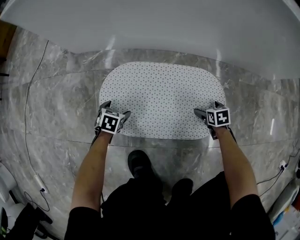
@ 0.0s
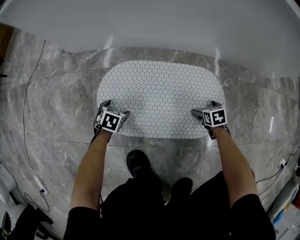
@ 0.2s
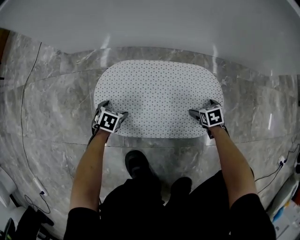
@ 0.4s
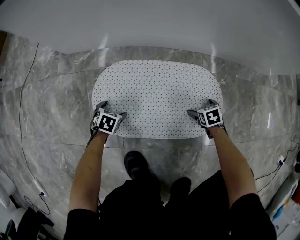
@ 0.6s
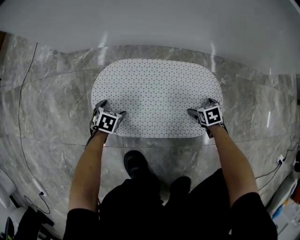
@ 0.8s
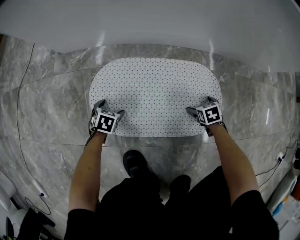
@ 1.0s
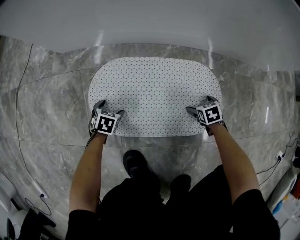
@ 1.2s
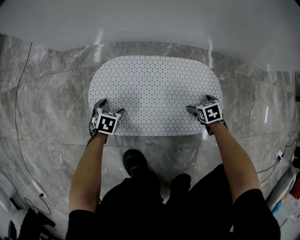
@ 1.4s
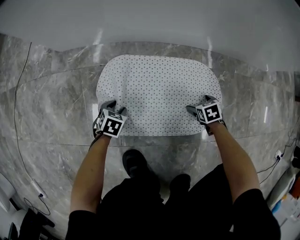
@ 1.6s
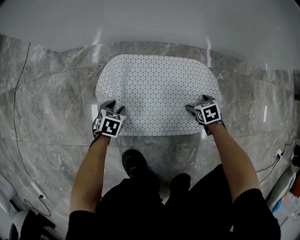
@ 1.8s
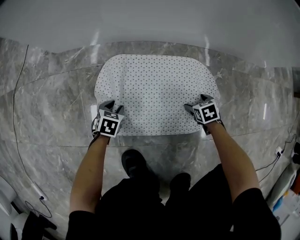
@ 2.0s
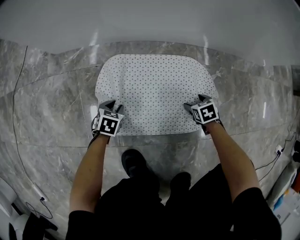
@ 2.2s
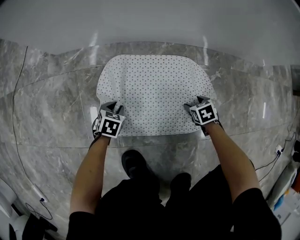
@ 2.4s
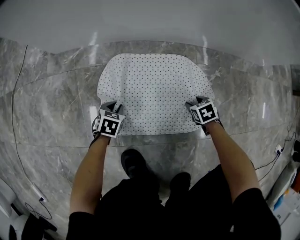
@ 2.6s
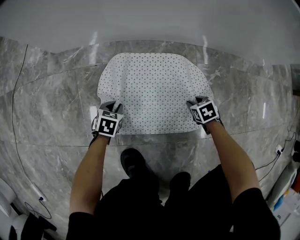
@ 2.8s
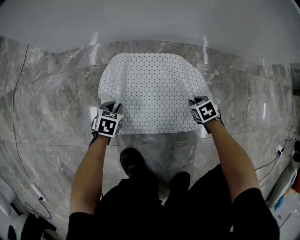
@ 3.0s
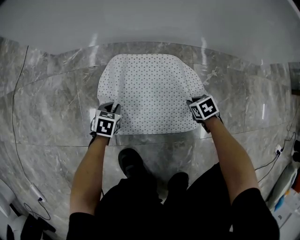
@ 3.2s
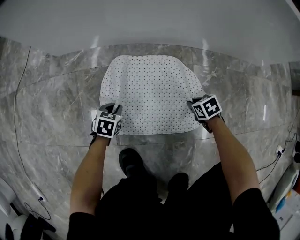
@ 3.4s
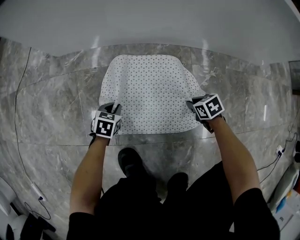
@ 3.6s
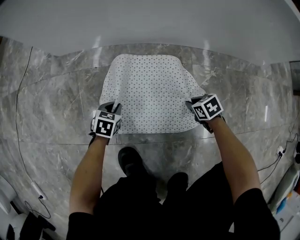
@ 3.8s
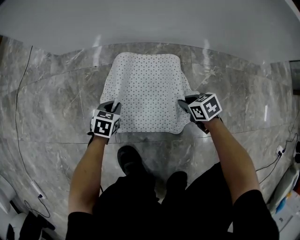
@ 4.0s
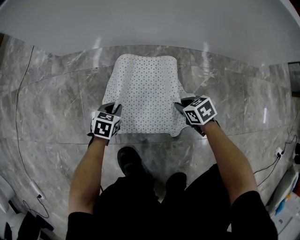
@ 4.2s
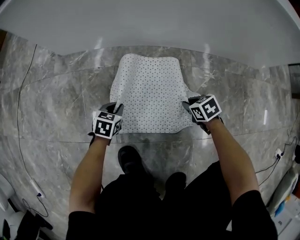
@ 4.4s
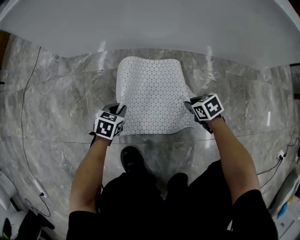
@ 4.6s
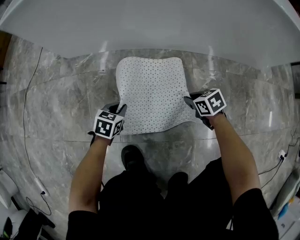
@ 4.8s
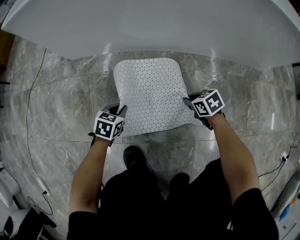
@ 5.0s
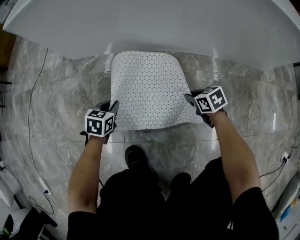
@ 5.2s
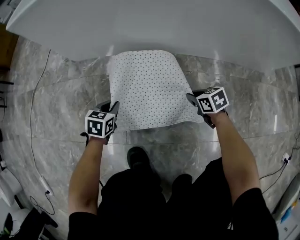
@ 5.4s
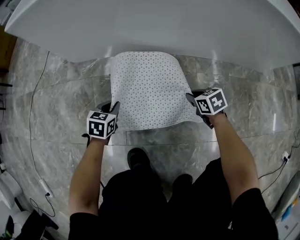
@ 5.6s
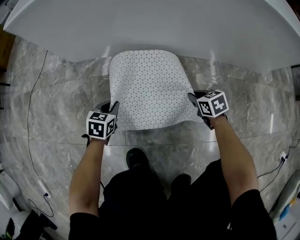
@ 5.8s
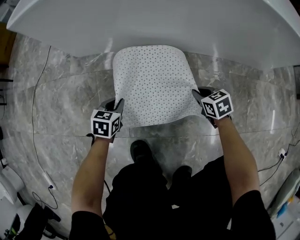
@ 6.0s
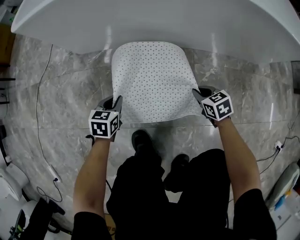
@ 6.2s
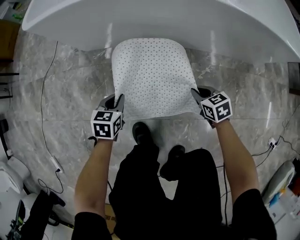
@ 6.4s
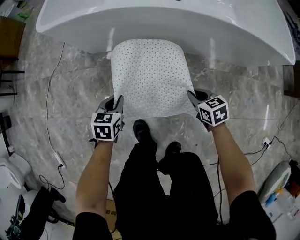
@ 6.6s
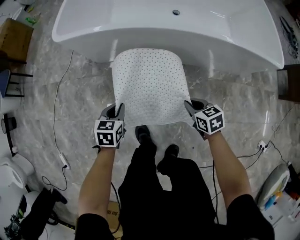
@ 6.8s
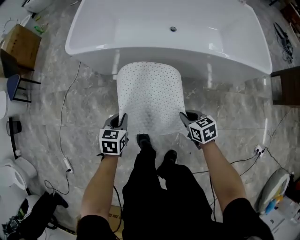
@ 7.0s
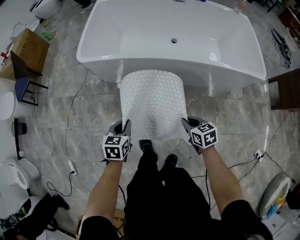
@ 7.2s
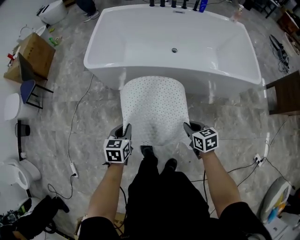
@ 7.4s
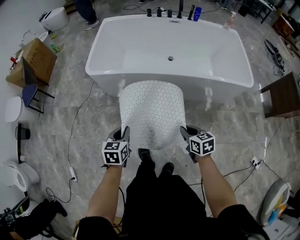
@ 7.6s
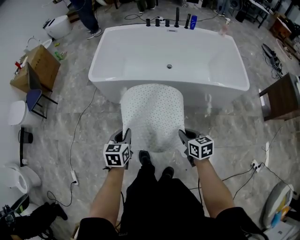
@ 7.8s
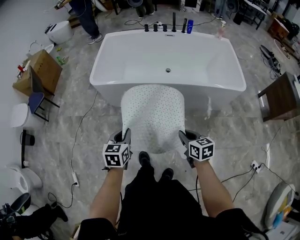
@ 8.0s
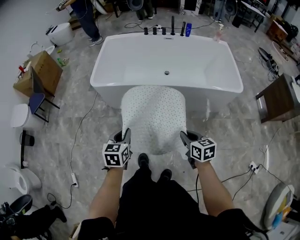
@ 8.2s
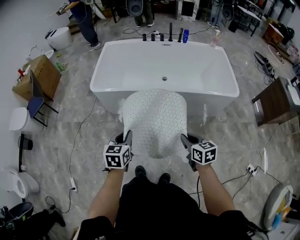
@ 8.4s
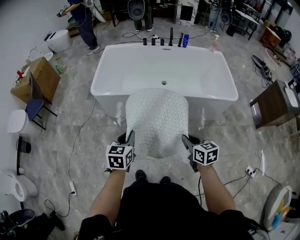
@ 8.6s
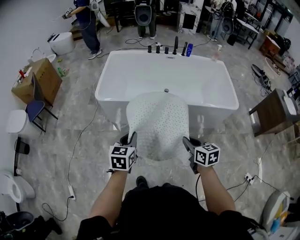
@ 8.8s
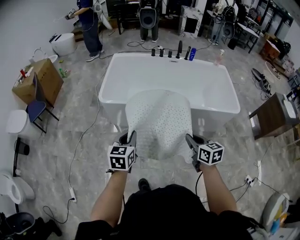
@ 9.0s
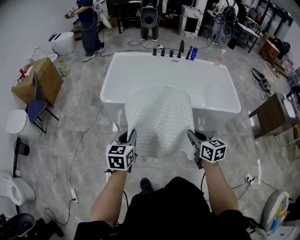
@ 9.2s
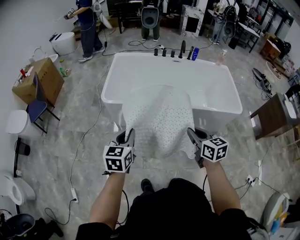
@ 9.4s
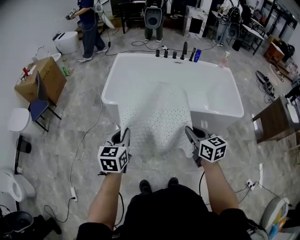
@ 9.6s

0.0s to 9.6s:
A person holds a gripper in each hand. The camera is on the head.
0.0s to 1.6s: The left gripper closes its fingers.
1.6s to 3.2s: The right gripper closes up.
3.2s to 4.8s: The two grippers go some 10 cm upward.
4.8s to 6.4s: Both grippers travel together upward, some 20 cm.
6.4s to 8.0s: Both grippers move upward, approximately 50 cm. The right gripper rotates about 30 degrees.
8.0s to 9.6s: The right gripper heads upward and forward, covering approximately 20 cm. The left gripper heads upward, to the left and forward, covering about 20 cm.

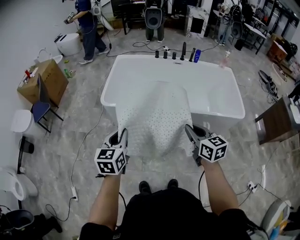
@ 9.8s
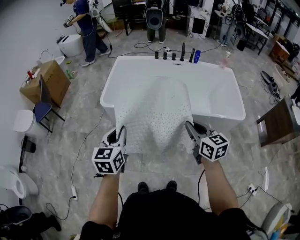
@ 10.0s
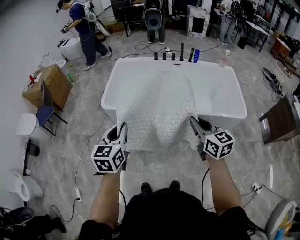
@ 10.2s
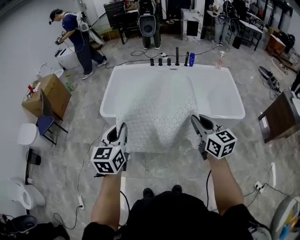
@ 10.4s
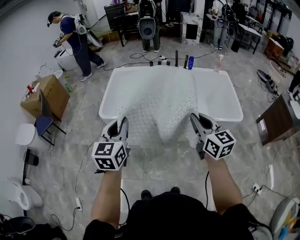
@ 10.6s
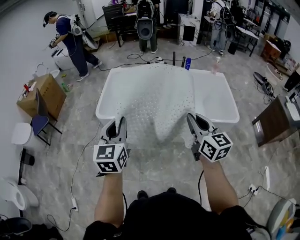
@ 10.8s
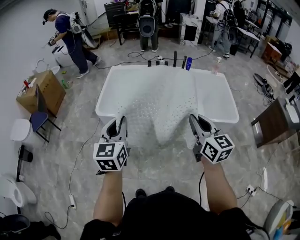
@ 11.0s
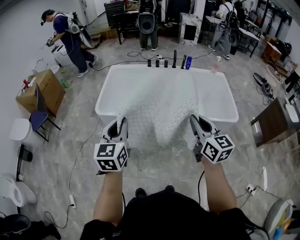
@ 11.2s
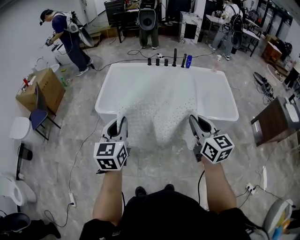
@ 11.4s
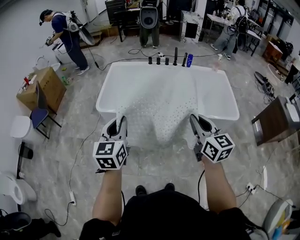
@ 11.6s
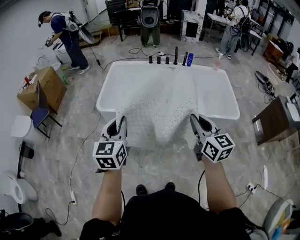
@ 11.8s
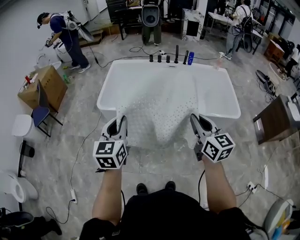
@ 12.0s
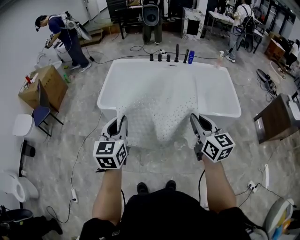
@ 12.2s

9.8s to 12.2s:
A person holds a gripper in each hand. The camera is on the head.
9.8s to 11.0s: The two grippers go roughly 10 cm upward and to the right.
11.0s to 12.2s: The grippers stay close to where they were, moving slightly.

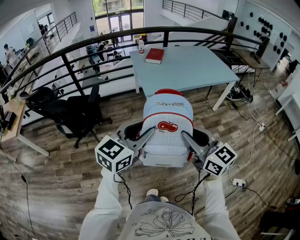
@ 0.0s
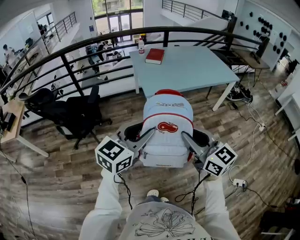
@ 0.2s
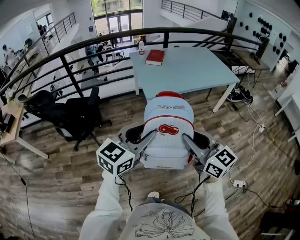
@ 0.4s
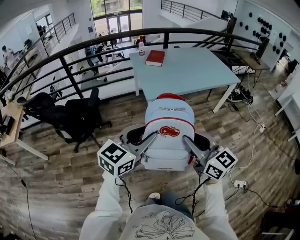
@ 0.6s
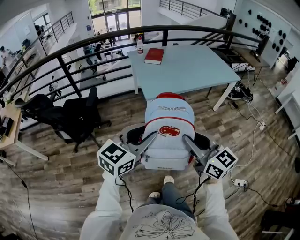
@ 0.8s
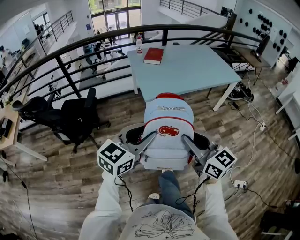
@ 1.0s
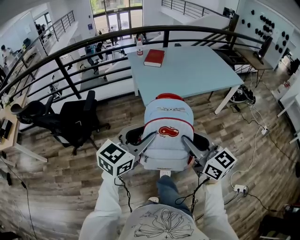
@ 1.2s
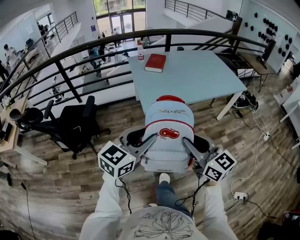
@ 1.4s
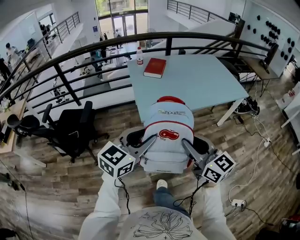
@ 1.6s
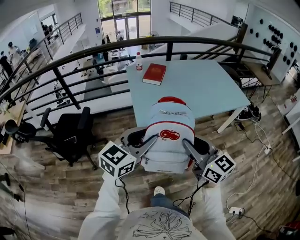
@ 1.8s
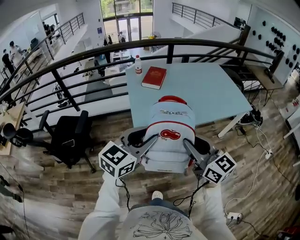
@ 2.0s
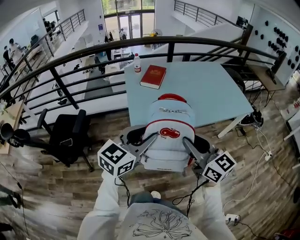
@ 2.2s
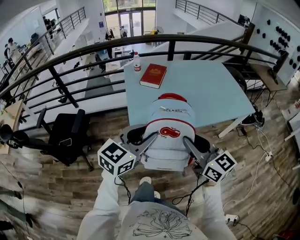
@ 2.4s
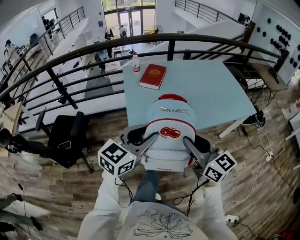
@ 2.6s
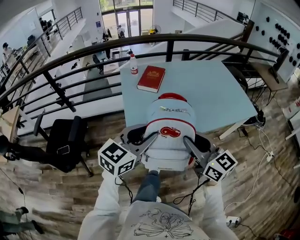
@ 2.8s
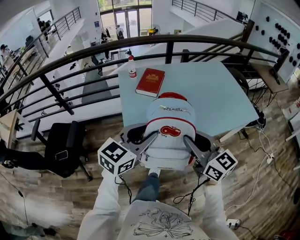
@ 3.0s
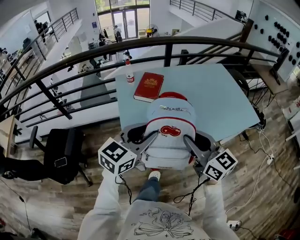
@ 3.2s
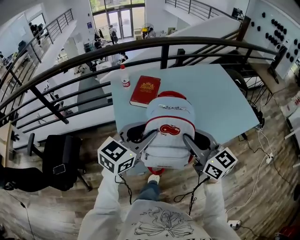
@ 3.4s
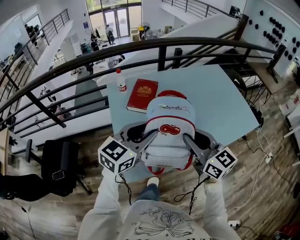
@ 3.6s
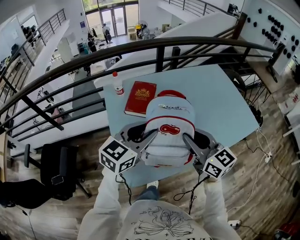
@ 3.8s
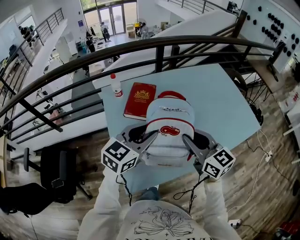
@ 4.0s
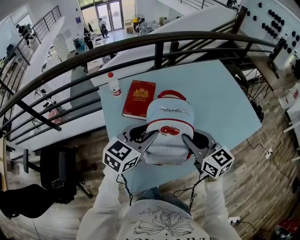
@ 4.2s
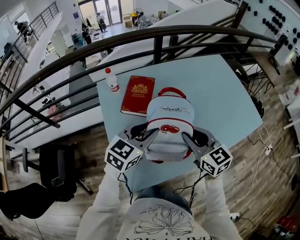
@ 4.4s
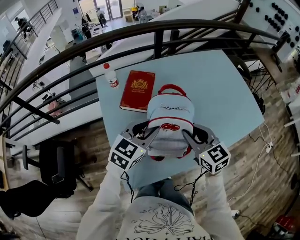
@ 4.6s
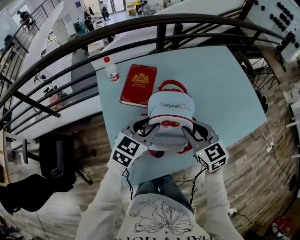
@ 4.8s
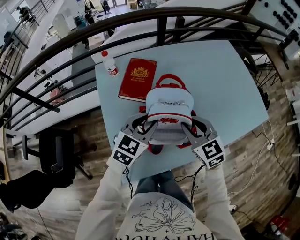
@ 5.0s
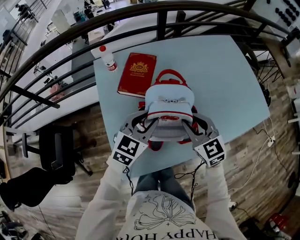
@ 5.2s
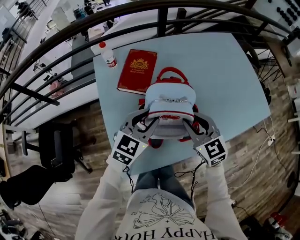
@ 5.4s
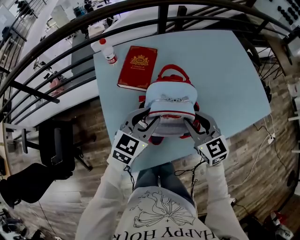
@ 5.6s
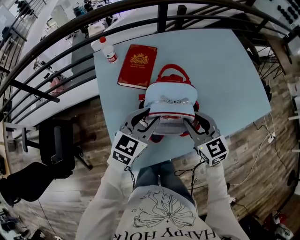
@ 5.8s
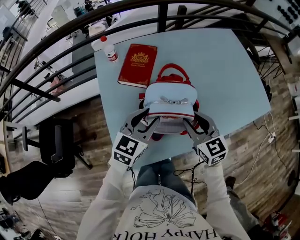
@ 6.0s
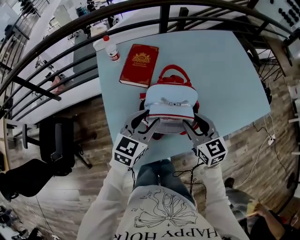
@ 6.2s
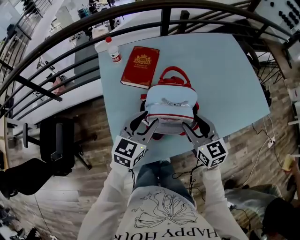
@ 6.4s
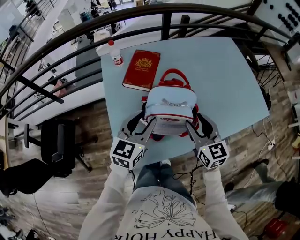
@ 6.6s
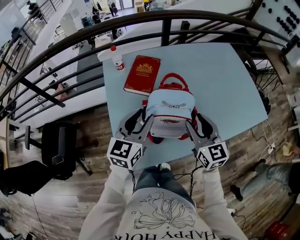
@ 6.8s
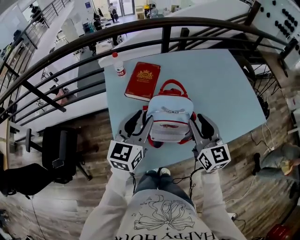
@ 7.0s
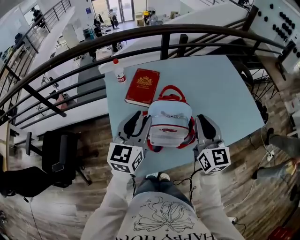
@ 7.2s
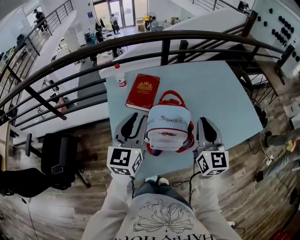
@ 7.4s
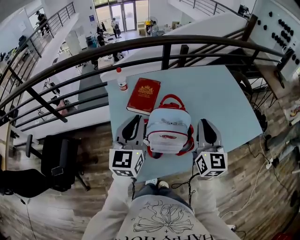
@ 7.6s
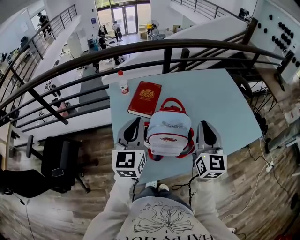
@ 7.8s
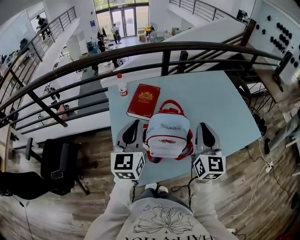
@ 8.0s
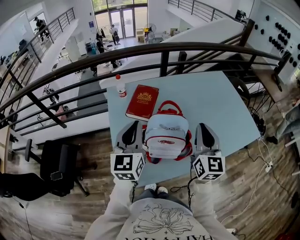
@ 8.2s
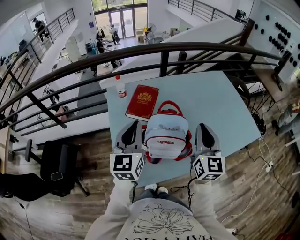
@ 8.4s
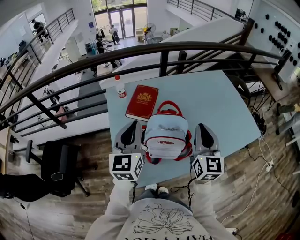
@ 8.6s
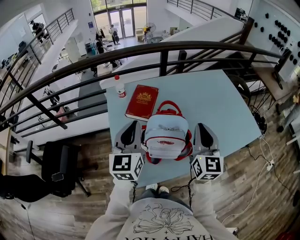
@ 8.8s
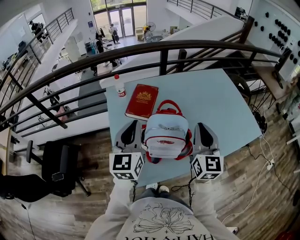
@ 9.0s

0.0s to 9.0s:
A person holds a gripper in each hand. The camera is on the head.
0.0s to 1.6s: The two grippers go some 25 cm forward.
1.6s to 3.0s: Both grippers travel together forward, some 30 cm.
3.0s to 4.4s: Both grippers move forward, some 30 cm.
4.4s to 6.0s: Both grippers move downward, roughly 10 cm.
6.0s to 7.6s: The two grippers go about 15 cm upward. The right gripper swivels about 30 degrees, and closes its fingers. The left gripper rotates about 30 degrees, and closes up.
7.6s to 9.0s: The two grippers keep their place.

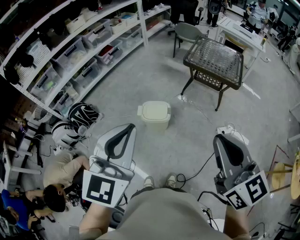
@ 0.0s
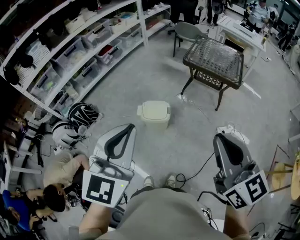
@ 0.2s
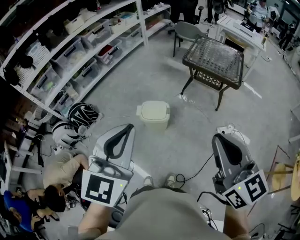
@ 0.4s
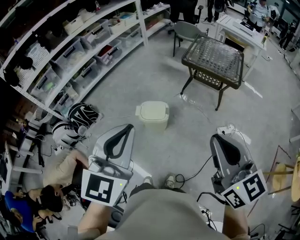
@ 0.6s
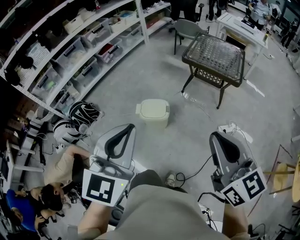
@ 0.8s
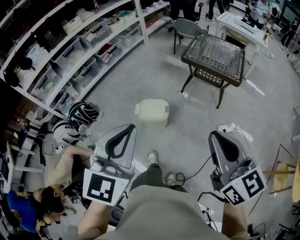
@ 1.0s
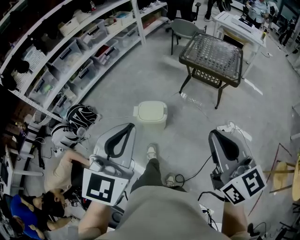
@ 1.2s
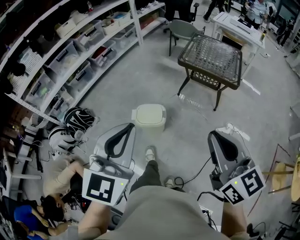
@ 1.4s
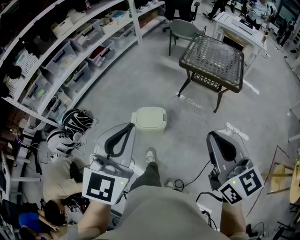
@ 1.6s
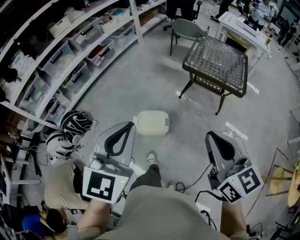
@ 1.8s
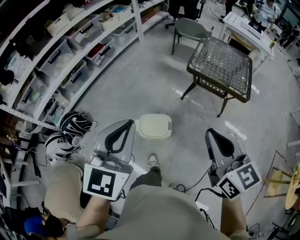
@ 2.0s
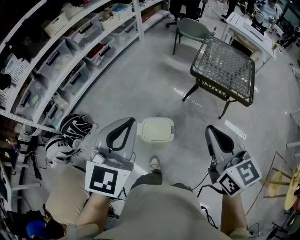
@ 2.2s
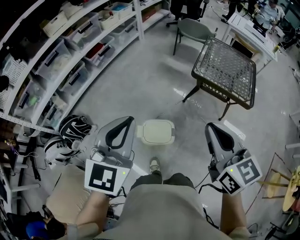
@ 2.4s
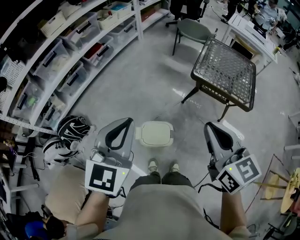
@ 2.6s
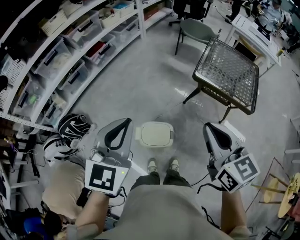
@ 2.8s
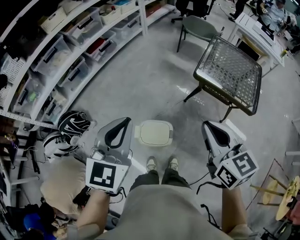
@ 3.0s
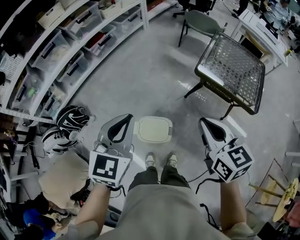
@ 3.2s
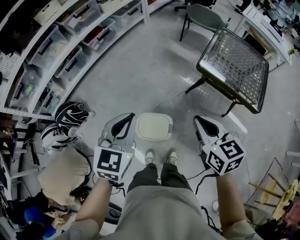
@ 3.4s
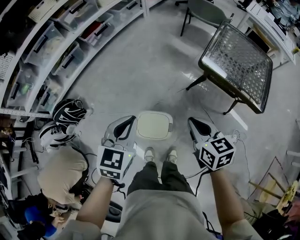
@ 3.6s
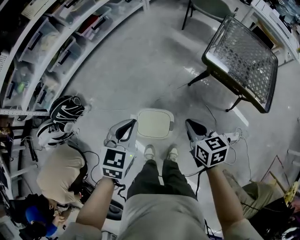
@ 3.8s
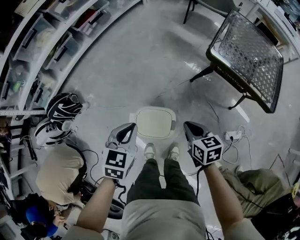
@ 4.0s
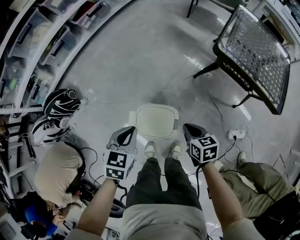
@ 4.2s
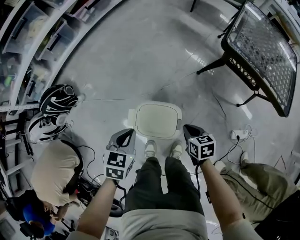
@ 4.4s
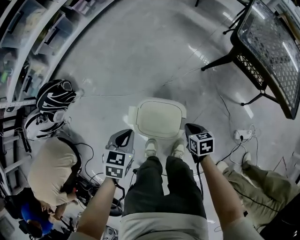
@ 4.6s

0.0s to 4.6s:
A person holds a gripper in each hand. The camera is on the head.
0.0s to 1.6s: The left gripper is displaced forward by some 10 cm; the right gripper is displaced forward and downward by roughly 15 cm.
1.6s to 3.0s: The two grippers go roughly 30 cm forward.
3.0s to 4.6s: Both grippers travel together downward, about 60 cm. The right gripper tips its fingers downward by approximately 40 degrees. Meanwhile the left gripper points its fingers roughly 40 degrees further downward.
